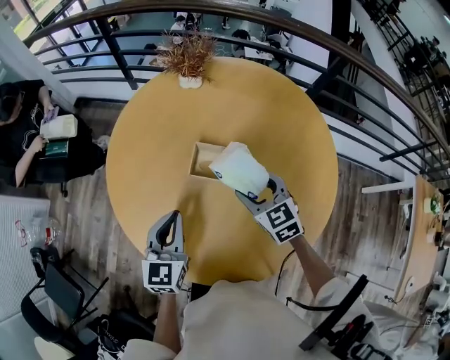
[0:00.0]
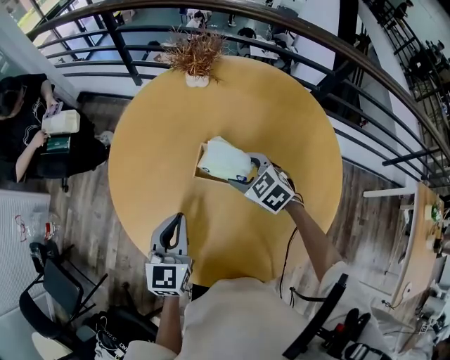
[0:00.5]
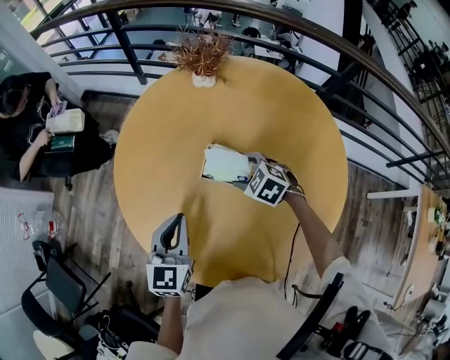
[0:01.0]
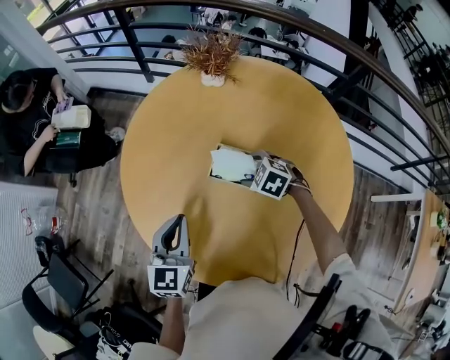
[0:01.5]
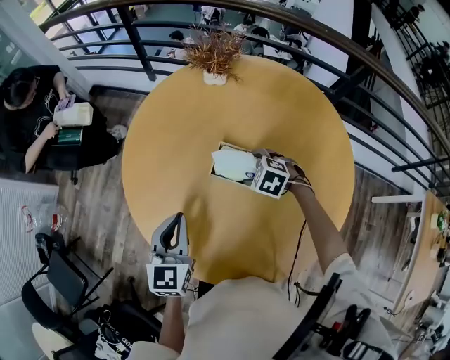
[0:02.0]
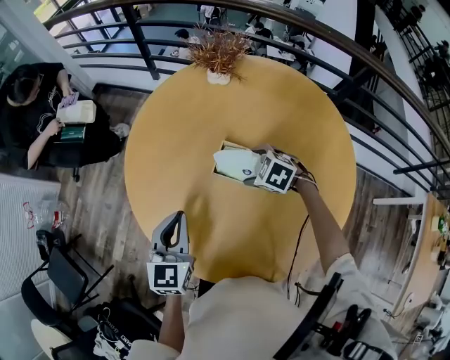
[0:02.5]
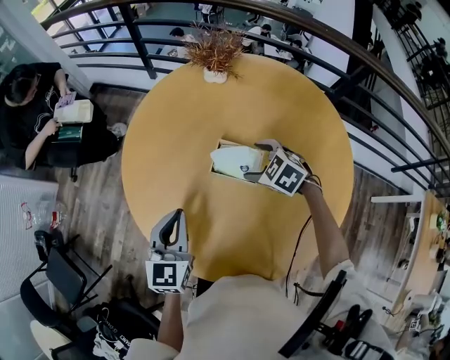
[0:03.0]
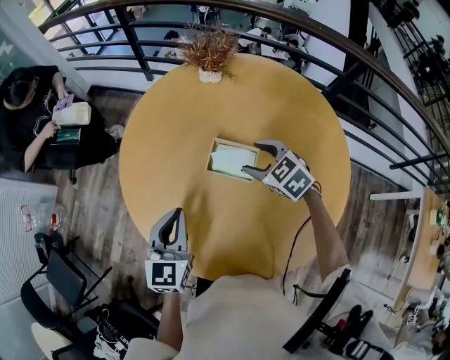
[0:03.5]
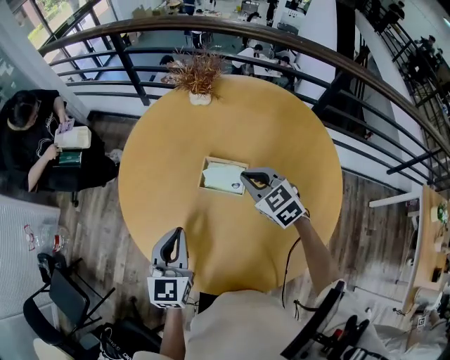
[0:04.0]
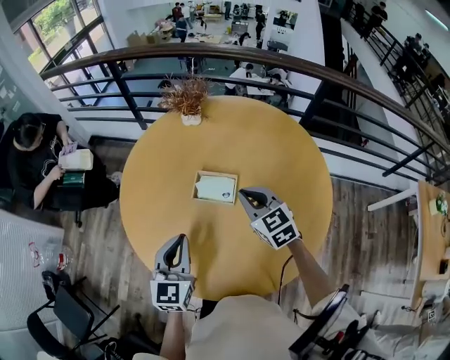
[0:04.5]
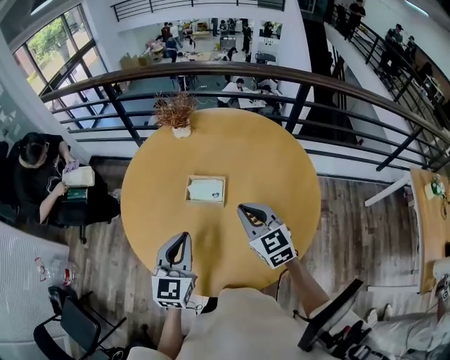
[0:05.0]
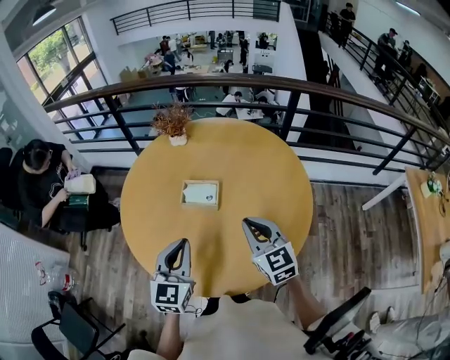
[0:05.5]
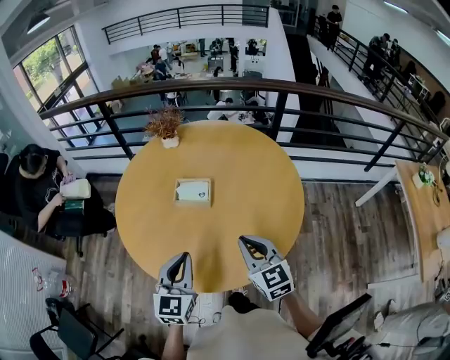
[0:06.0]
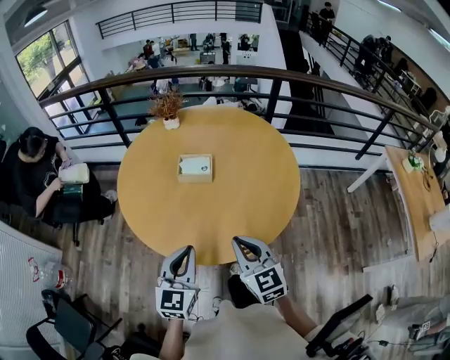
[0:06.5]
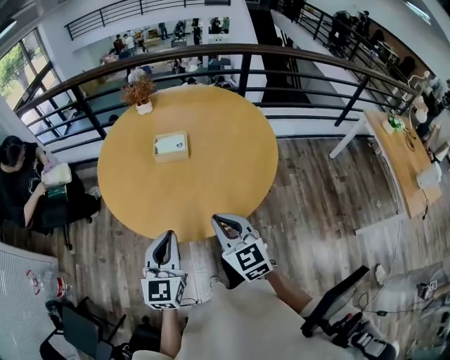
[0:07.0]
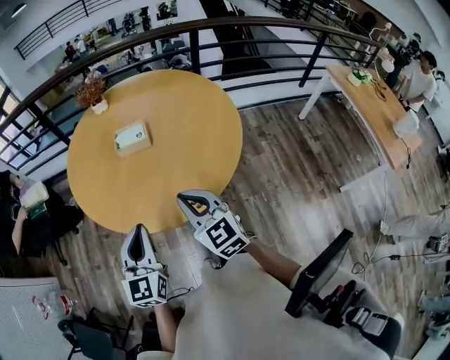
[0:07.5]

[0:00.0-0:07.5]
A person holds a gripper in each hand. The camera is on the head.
0:00.0 to 0:02.0: The right gripper goes approximately 10 cm downward and forward, and tips its fingers downward by some 30 degrees.
0:02.0 to 0:04.0: The right gripper moves upward, roughly 10 cm, tilts its fingers about 30 degrees upward, and closes its fingers.
0:04.0 to 0:05.5: The right gripper moves backward and upward, about 20 cm, and turns by roughly 30 degrees. The left gripper moves to the right, backward and upward, some 10 cm.
0:05.5 to 0:07.5: The two grippers go about 15 cm backward.

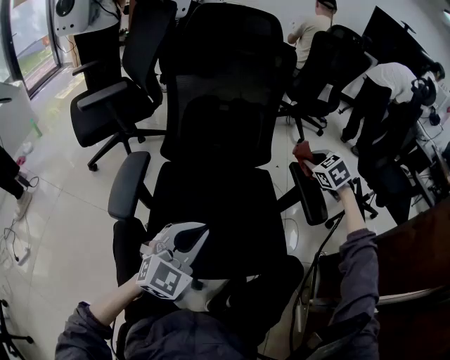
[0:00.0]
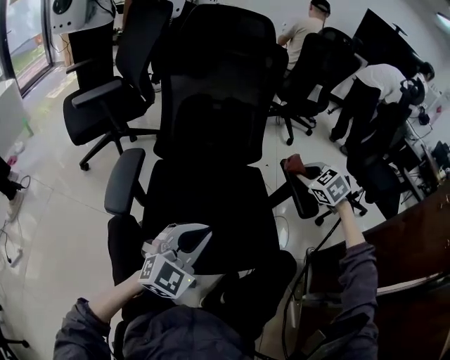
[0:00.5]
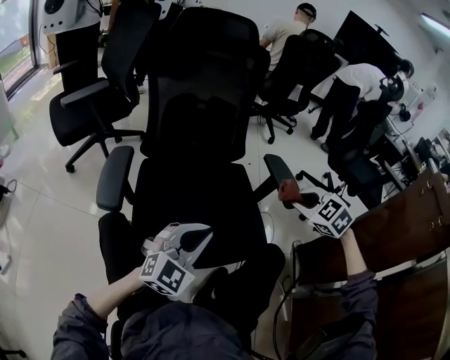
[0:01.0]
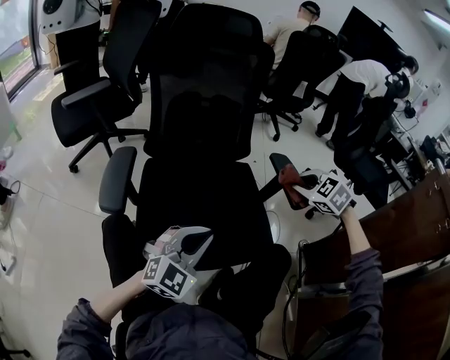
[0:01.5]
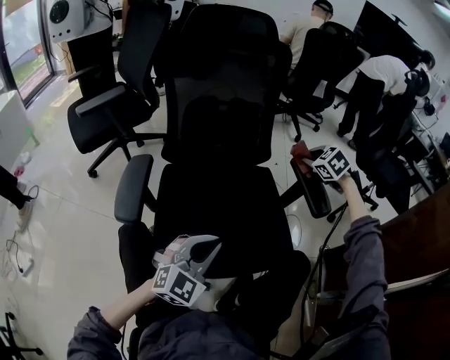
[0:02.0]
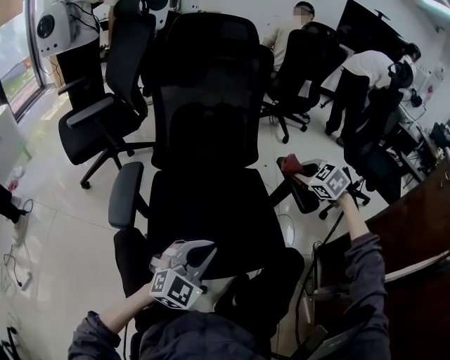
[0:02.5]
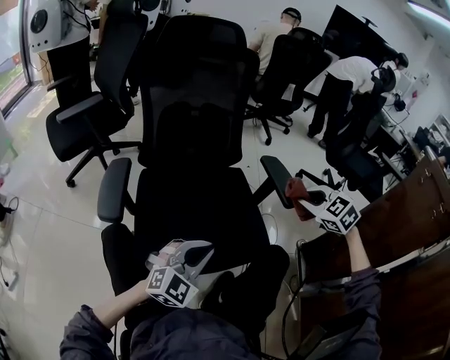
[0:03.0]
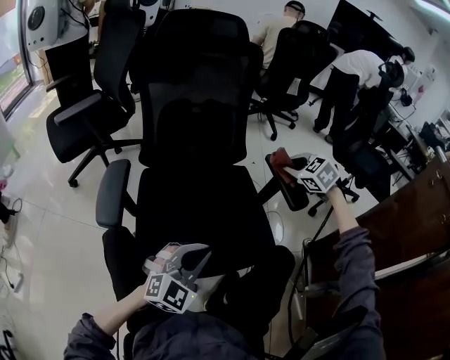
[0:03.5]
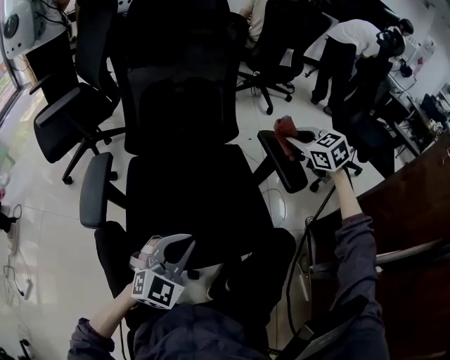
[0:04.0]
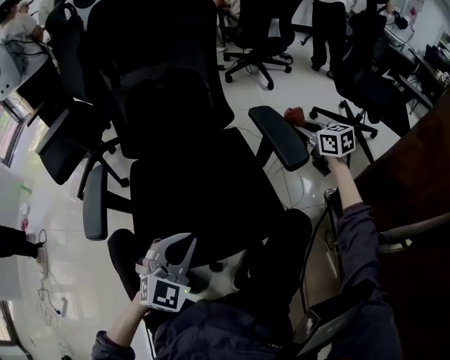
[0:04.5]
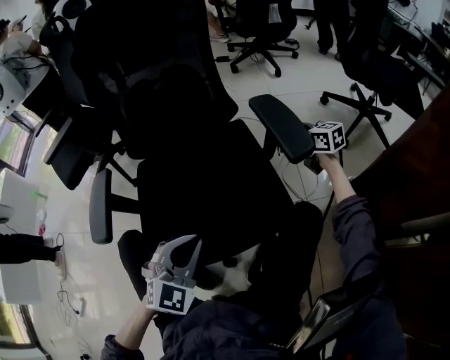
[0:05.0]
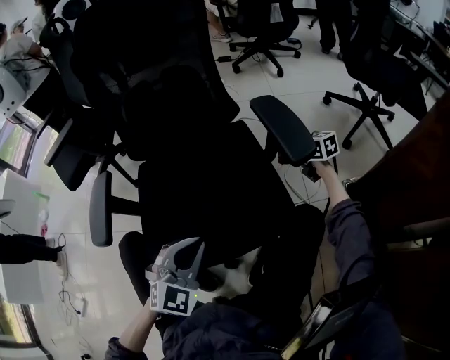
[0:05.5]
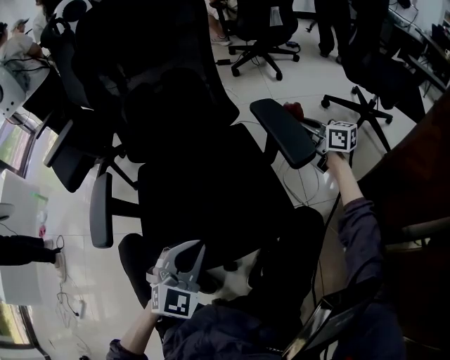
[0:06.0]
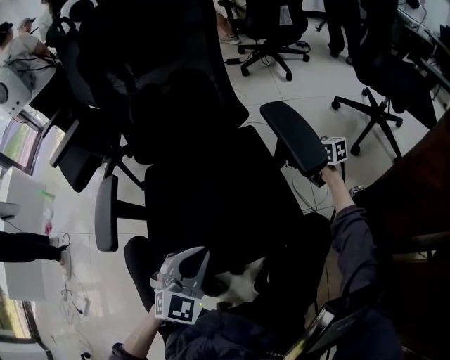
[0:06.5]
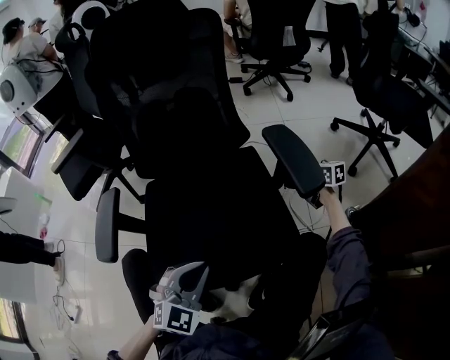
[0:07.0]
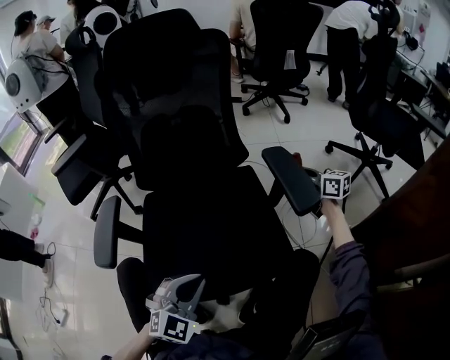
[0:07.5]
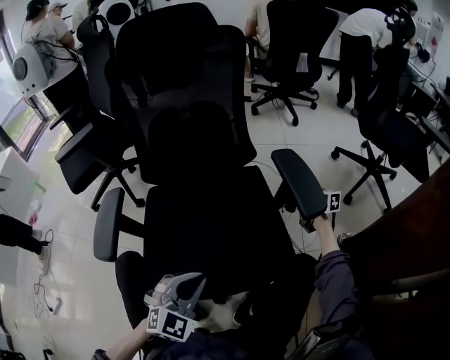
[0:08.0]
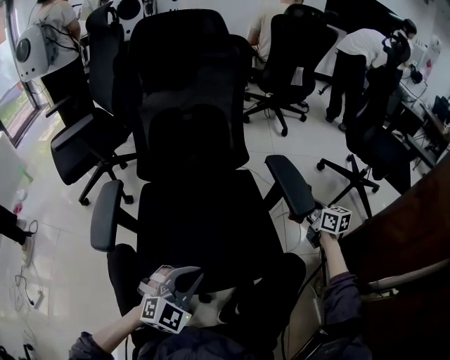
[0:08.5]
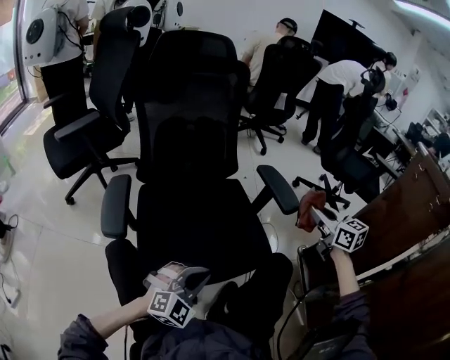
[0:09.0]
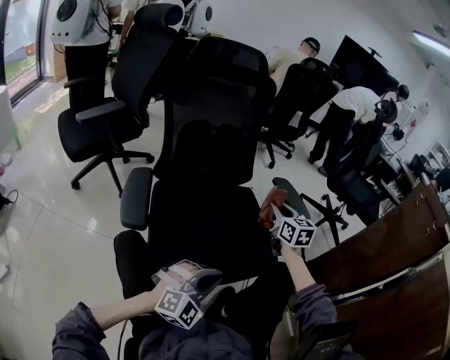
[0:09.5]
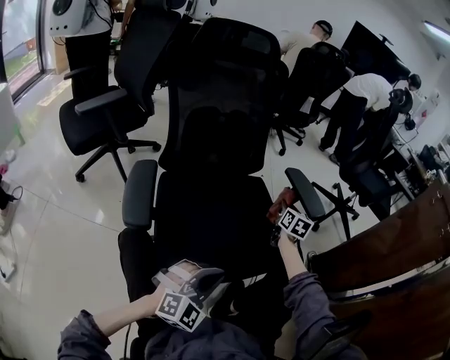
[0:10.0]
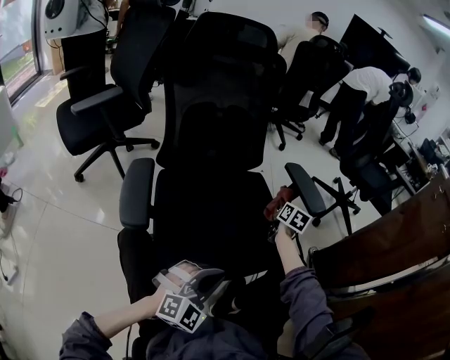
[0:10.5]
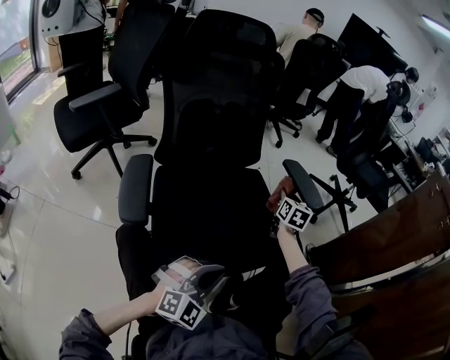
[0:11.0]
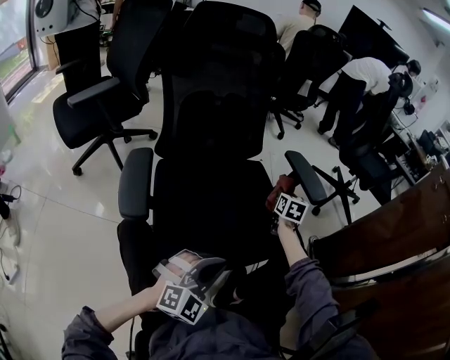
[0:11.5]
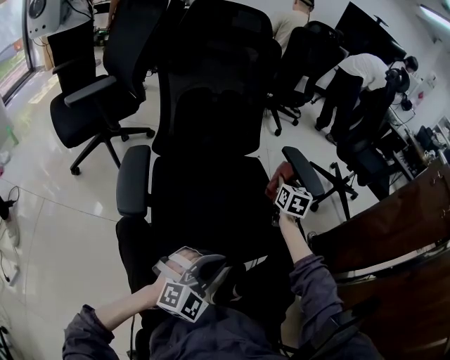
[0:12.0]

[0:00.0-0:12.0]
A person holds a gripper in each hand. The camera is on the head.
0:00.0 to 0:02.0: The right gripper travels backward and back again, approximately 20 cm each way. Meanwhile the left gripper changes place by about 5 cm.
0:02.0 to 0:04.0: The right gripper reaches approximately 20 cm backward, then returns, and changes its angle by some 20 degrees.
0:04.0 to 0:06.0: The right gripper travels downward and to the right by approximately 10 cm, and rotates around the line of its fingers by about 40 degrees, clockwise from behind.
0:06.0 to 0:08.0: The right gripper swings up and down, about 10 cm each way, with 2 reversals.
0:08.0 to 0:10.0: The left gripper moves about 5 cm, while the right gripper reaches about 25 cm upward, then returns, and rotates roughly 40 degrees.
0:10.0 to 0:12.0: The grippers move only a little.

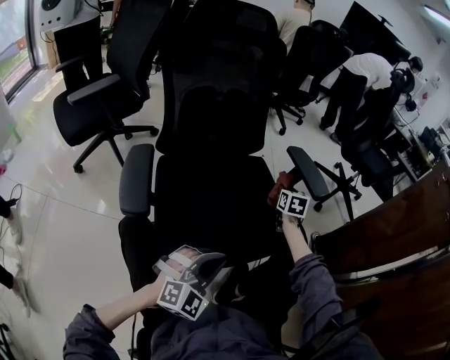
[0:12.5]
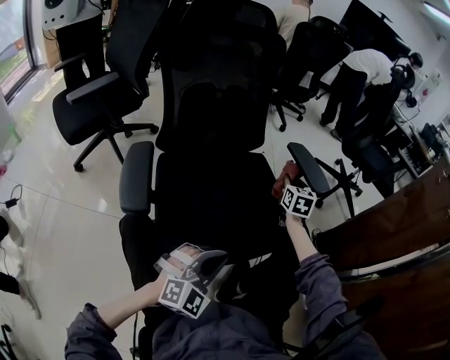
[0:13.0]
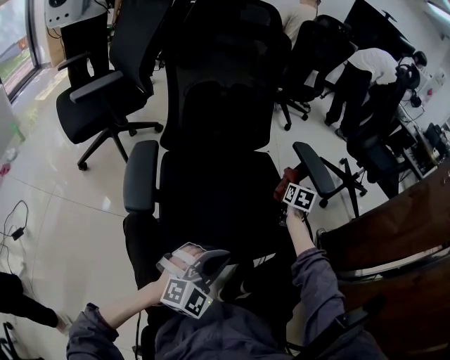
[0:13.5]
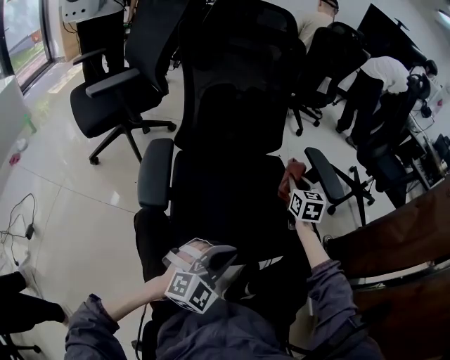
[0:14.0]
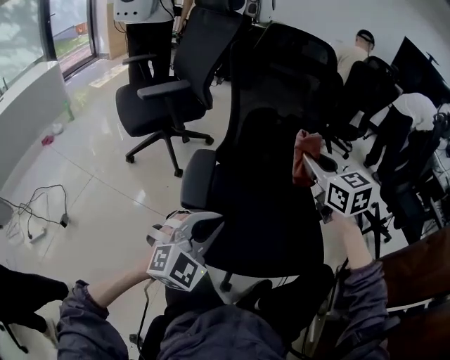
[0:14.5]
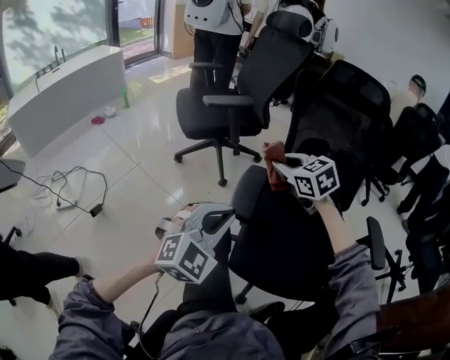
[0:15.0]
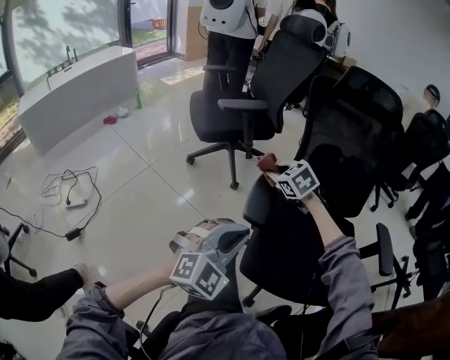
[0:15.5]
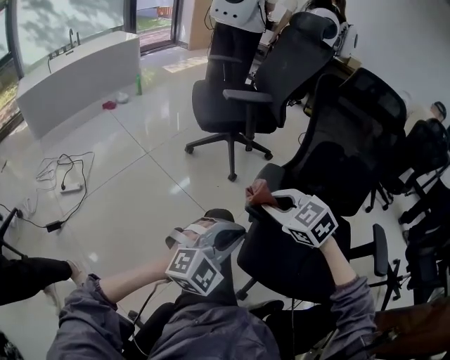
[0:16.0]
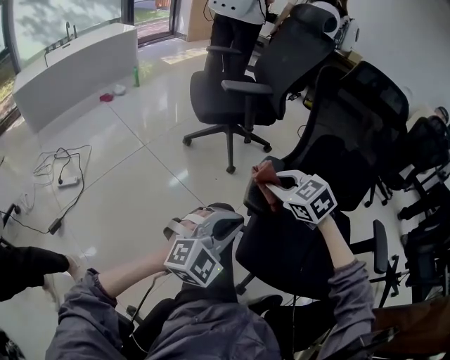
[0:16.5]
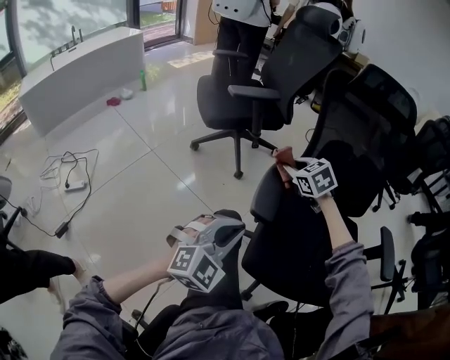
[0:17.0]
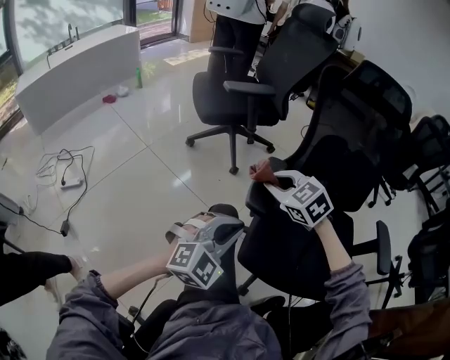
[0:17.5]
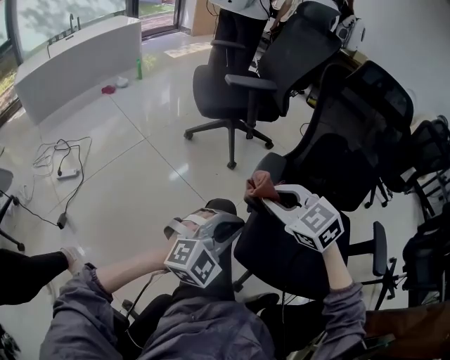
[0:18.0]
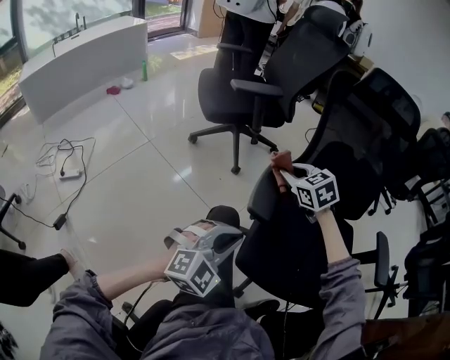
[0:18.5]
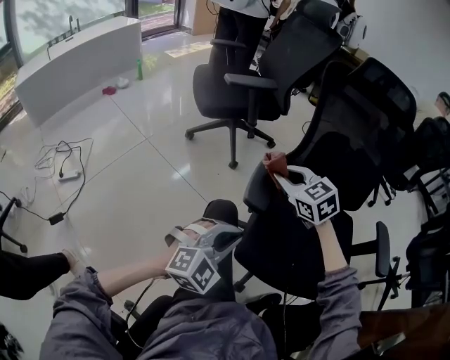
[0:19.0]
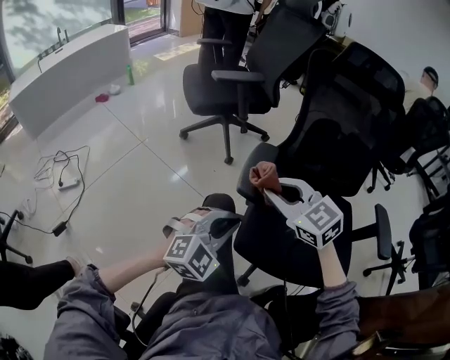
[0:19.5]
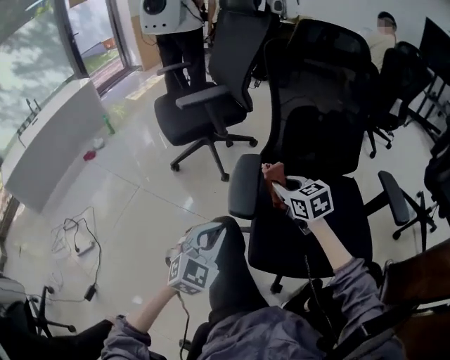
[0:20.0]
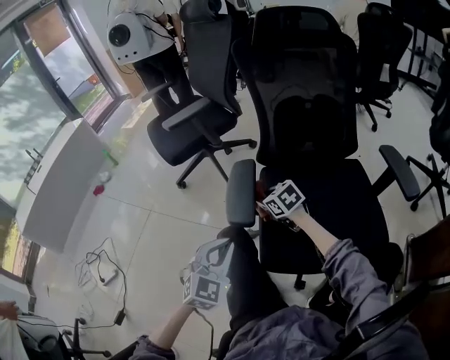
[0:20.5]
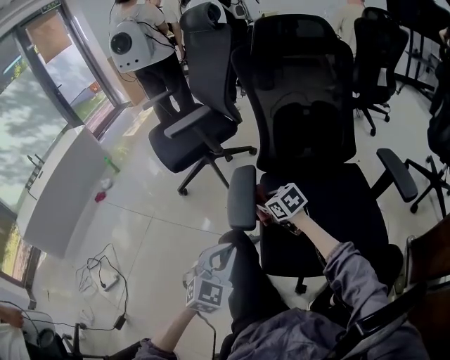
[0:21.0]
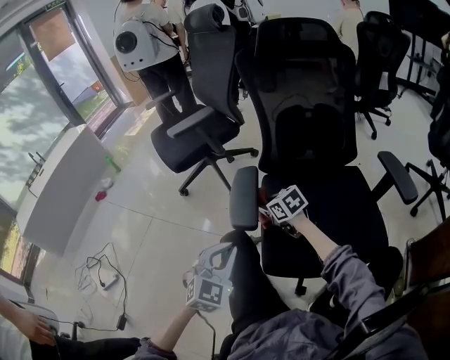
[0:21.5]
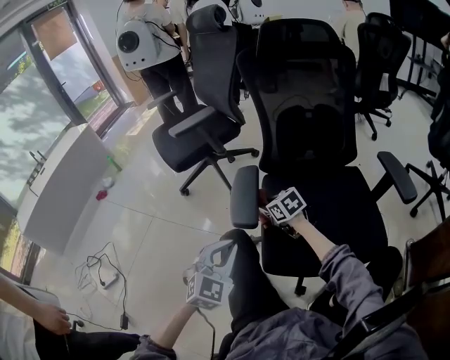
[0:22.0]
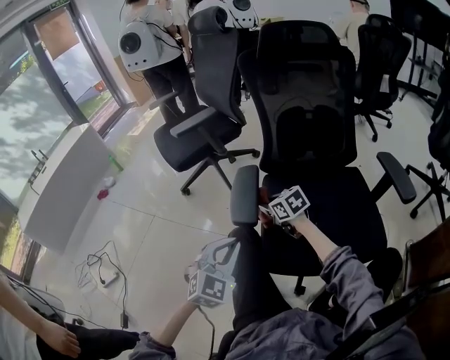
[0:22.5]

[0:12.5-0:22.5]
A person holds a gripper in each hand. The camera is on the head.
0:12.5 to 0:14.5: The left gripper shifts by approximately 20 cm, and swivels about 20 degrees, while the right gripper goes up and down, roughly 30 cm each way, reversing 2 times, and changes its angle by about 50 degrees.
0:14.5 to 0:16.5: The left gripper shifts by approximately 10 cm. Meanwhile the right gripper moves about 30 cm, and turns by about 50 degrees.
0:16.5 to 0:18.5: The right gripper moves forward and backward over approximately 20 cm, changing direction 2 times.
0:18.5 to 0:20.5: The right gripper goes about 15 cm downward, and rotates roughly 30 degrees.
0:20.5 to 0:22.5: The grippers make only small movements.
